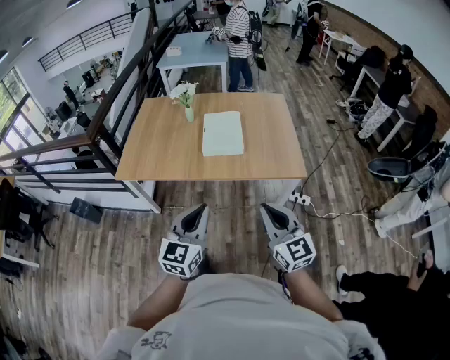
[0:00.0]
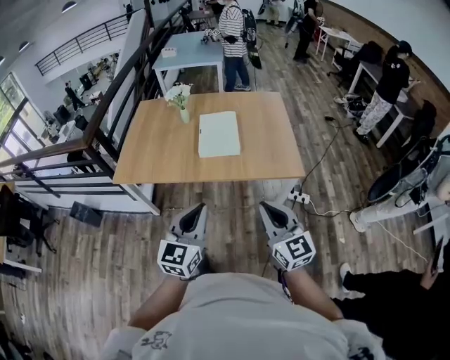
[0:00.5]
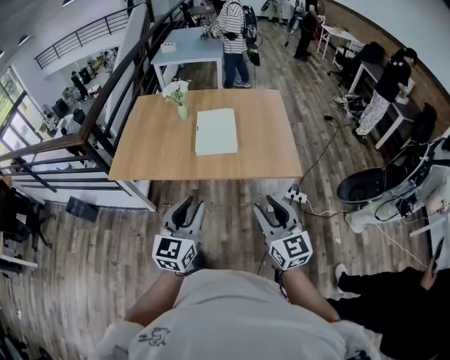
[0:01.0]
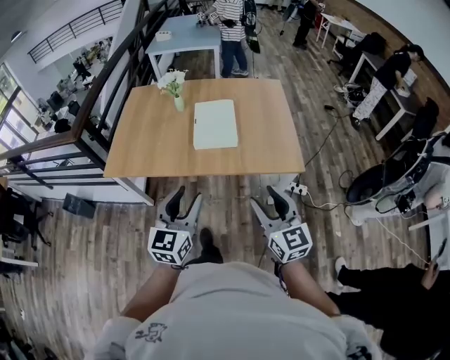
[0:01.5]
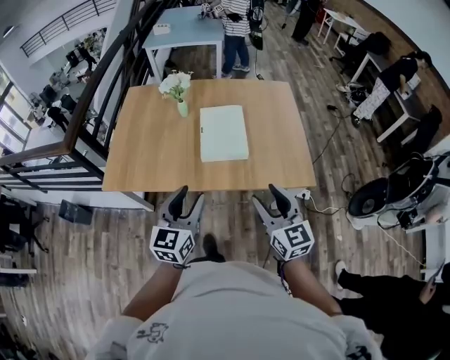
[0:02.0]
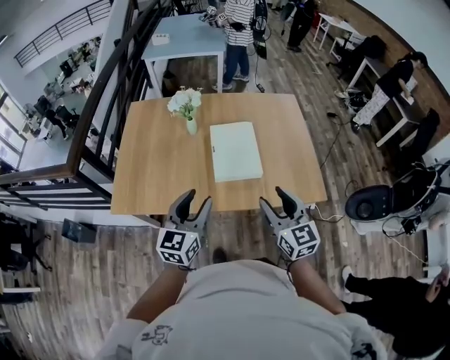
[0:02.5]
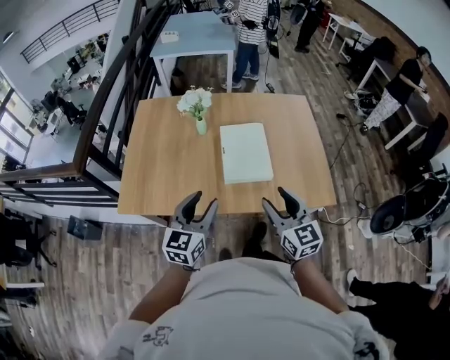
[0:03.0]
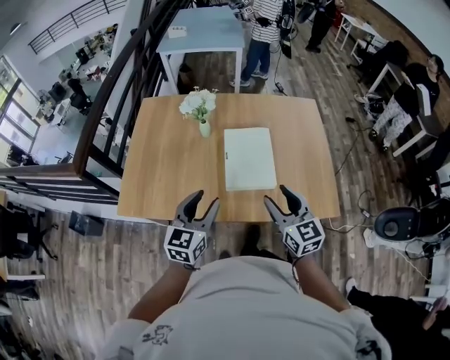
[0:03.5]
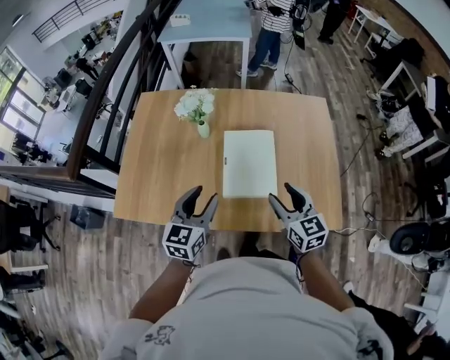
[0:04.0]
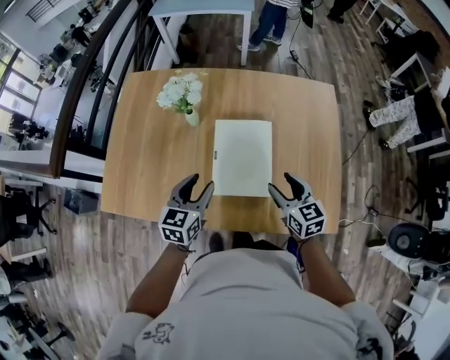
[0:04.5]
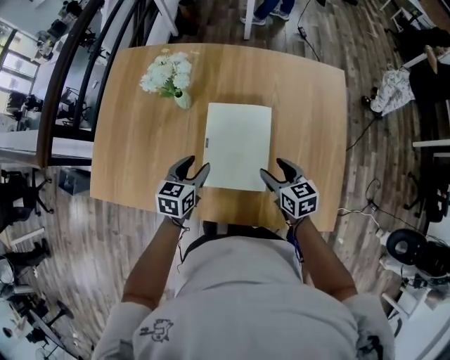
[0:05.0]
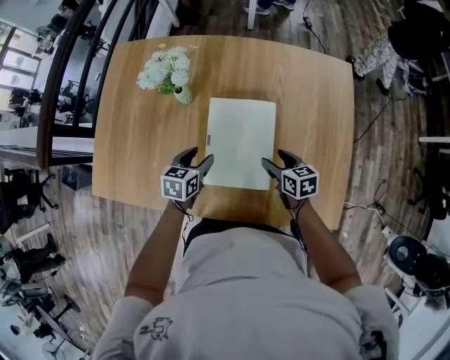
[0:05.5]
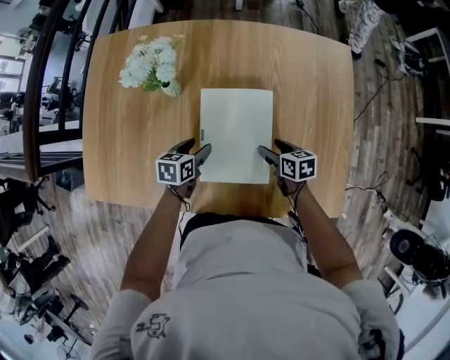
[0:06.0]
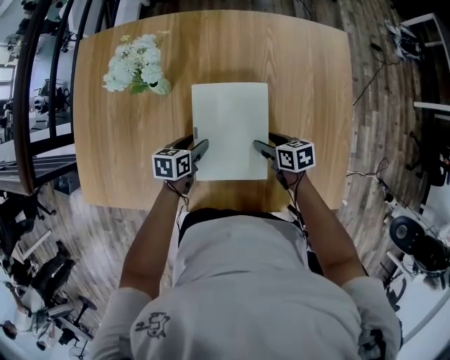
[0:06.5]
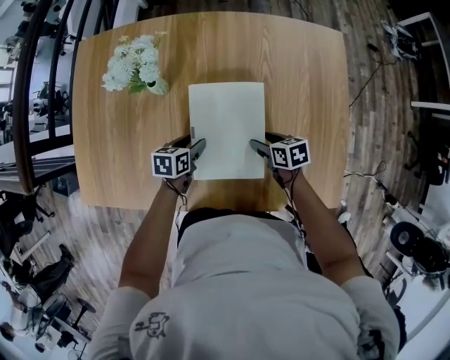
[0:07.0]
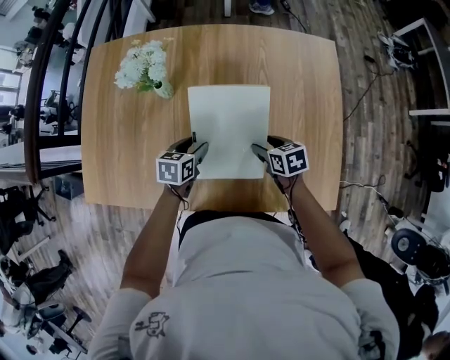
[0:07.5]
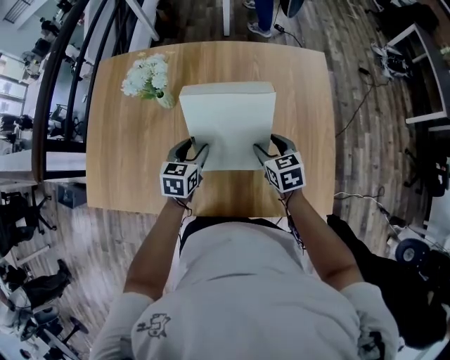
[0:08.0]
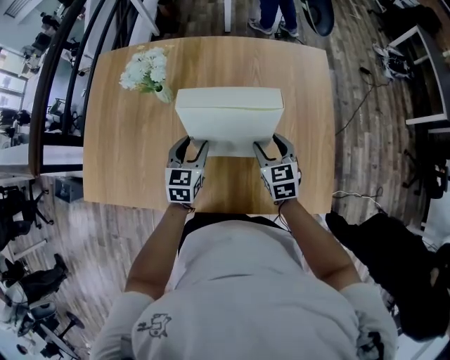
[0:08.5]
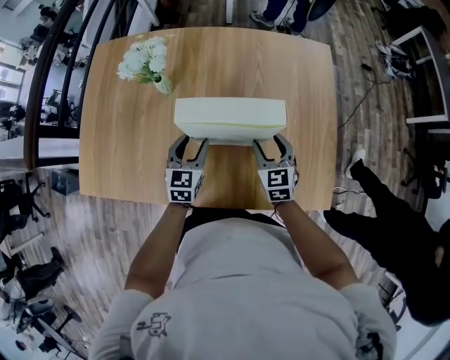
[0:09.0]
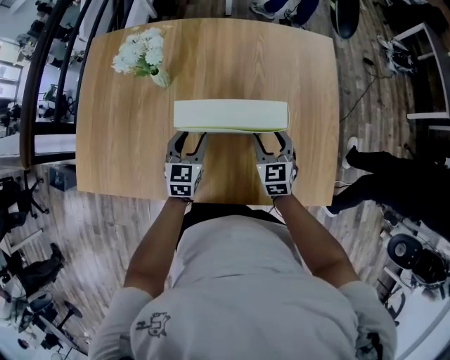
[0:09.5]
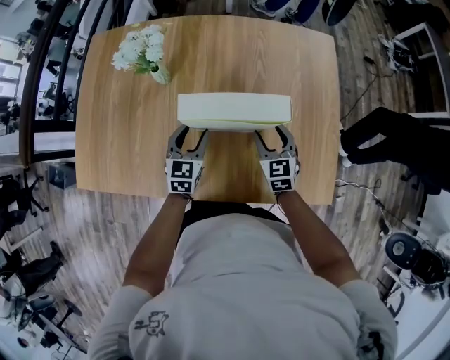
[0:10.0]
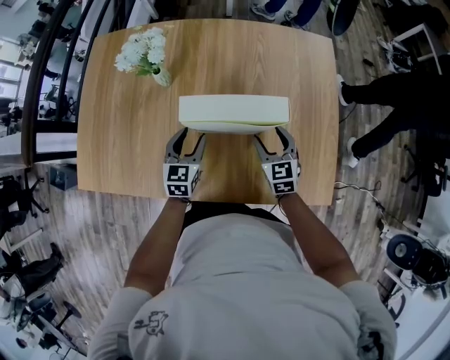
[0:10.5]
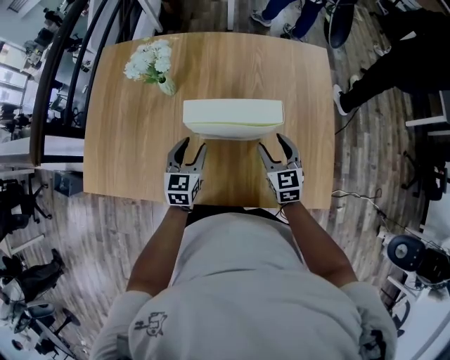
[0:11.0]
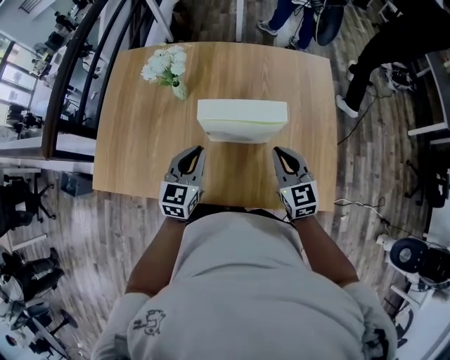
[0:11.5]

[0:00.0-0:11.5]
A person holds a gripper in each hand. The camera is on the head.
0:00.0 to 0:02.0: Both grippers move forward, approximately 20 cm. The left gripper opens; the right gripper opens.
0:02.0 to 0:04.0: The two grippers go approximately 25 cm forward.
0:04.0 to 0:06.0: The two grippers go approximately 30 cm downward and forward. The left gripper angles its fingers downward, by about 30 degrees. Meanwhile the right gripper turns by approximately 40 degrees.
0:06.0 to 0:07.5: The grippers stay close to where they were, moving slightly.
0:07.5 to 0:09.5: The grippers both shift upward by approximately 5 cm. The left gripper turns by some 30 degrees, while the right gripper swivels roughly 40 degrees.
0:09.5 to 0:11.5: The two grippers go some 15 cm upward and backward. The left gripper closes its fingers, while the right gripper closes up.

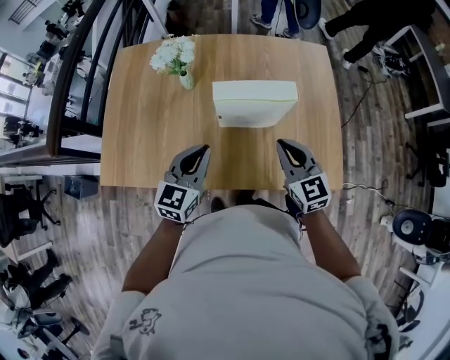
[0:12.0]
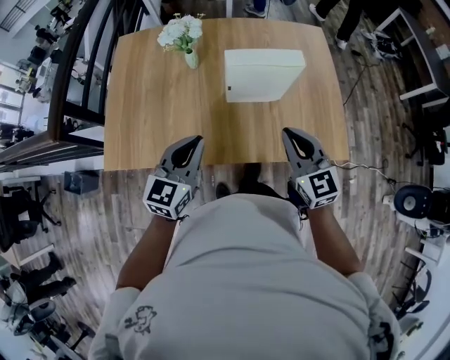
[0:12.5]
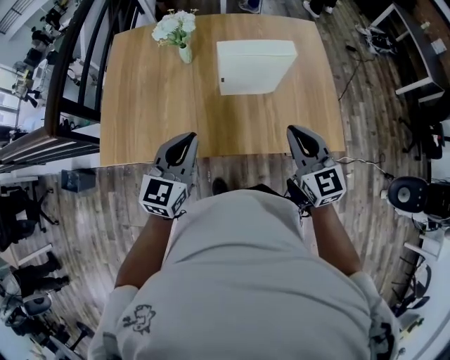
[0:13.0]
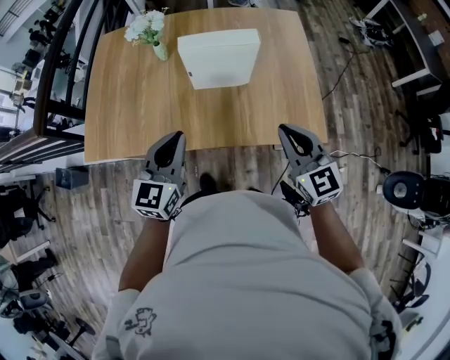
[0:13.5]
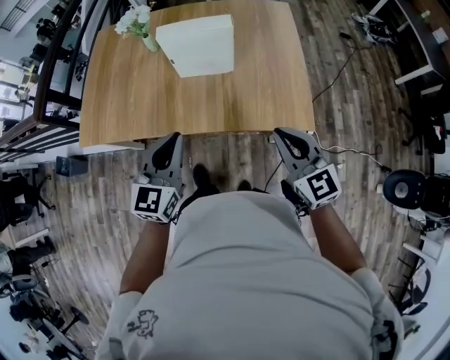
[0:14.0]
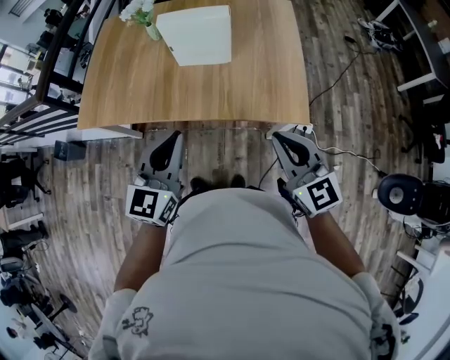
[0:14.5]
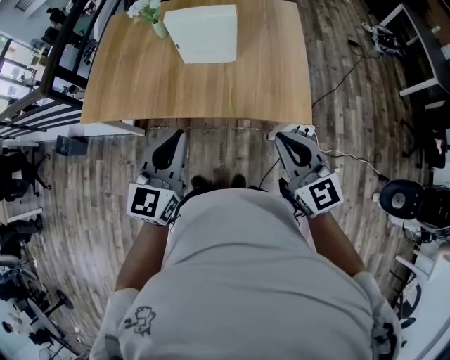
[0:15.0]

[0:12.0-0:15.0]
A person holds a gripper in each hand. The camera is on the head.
0:12.0 to 0:13.5: The right gripper travels backward and to the right by about 15 cm; the left gripper moves backward, roughly 10 cm.
0:13.5 to 0:15.0: The two grippers go about 15 cm backward and to the right.

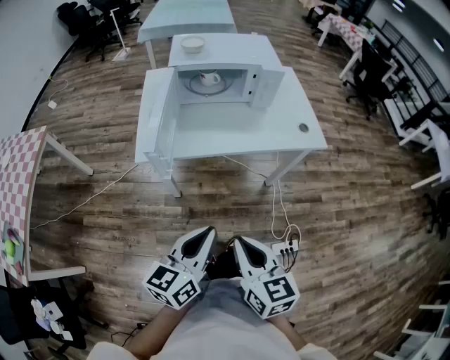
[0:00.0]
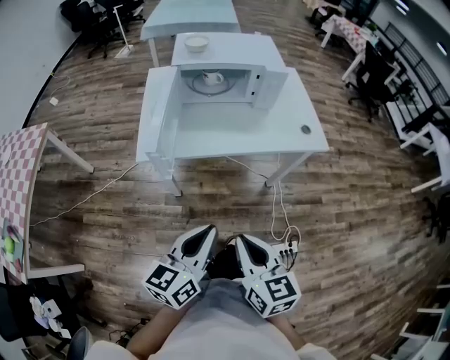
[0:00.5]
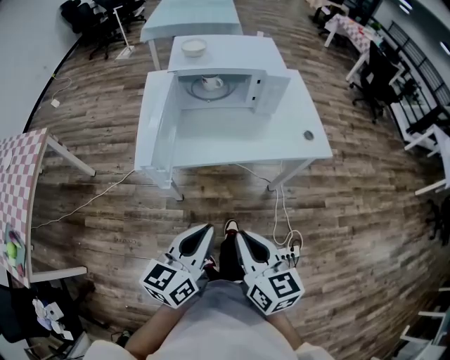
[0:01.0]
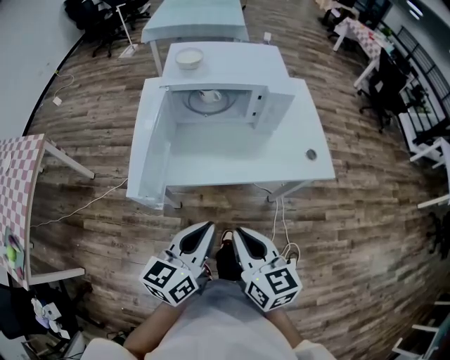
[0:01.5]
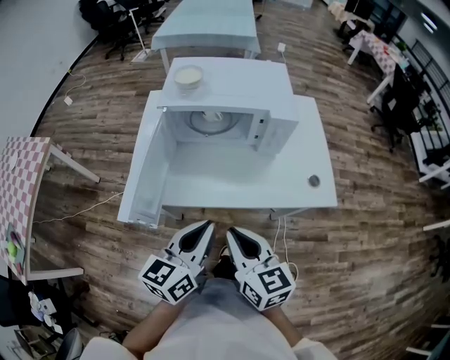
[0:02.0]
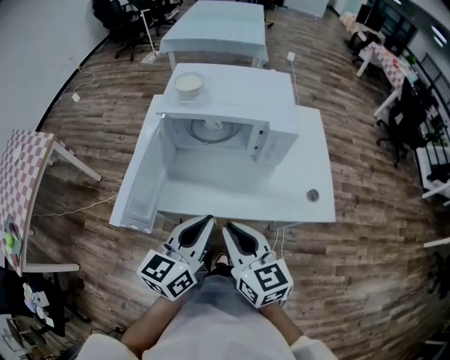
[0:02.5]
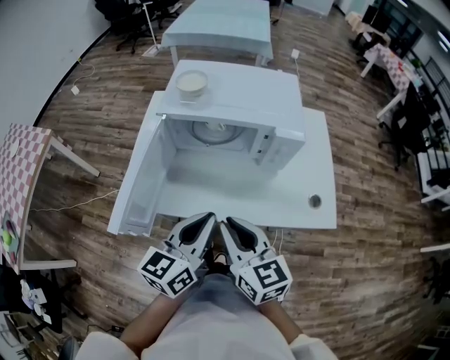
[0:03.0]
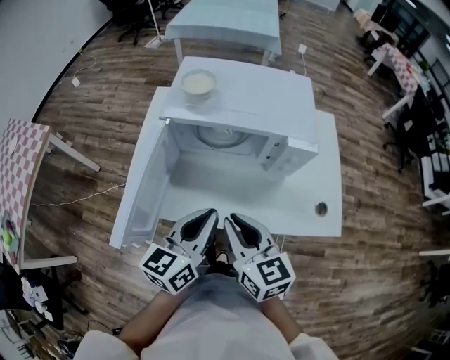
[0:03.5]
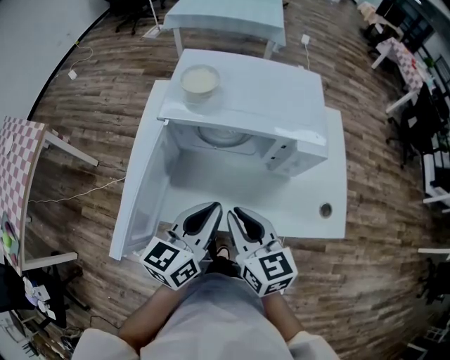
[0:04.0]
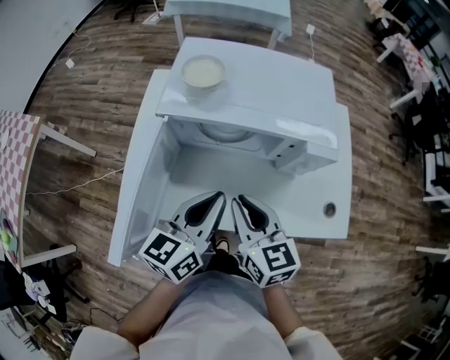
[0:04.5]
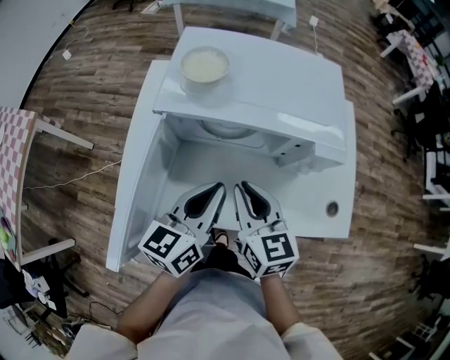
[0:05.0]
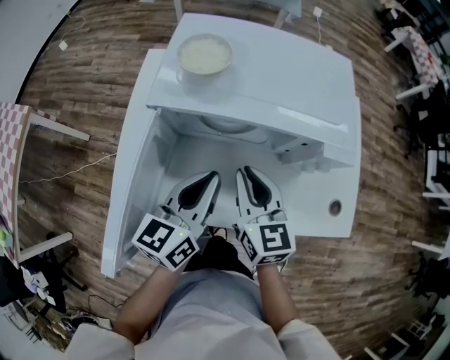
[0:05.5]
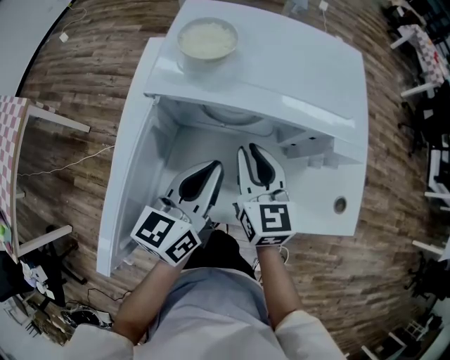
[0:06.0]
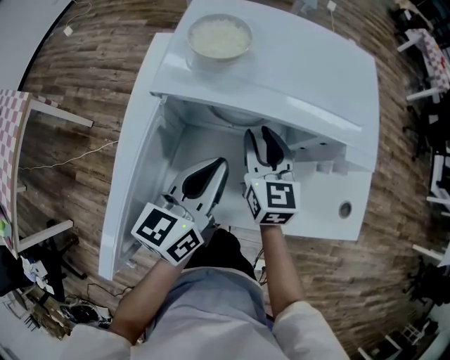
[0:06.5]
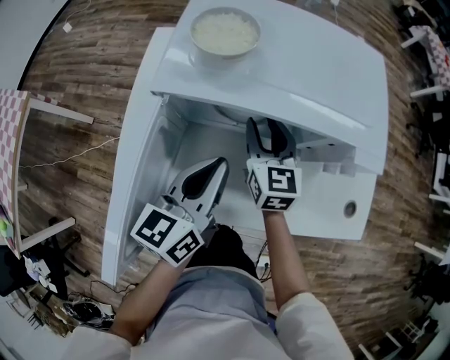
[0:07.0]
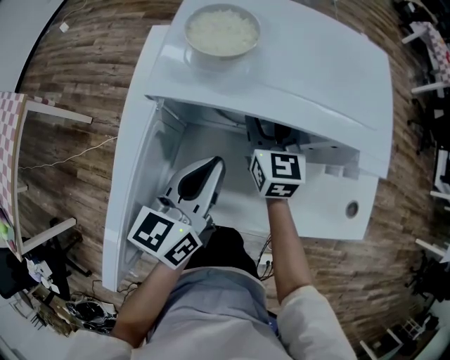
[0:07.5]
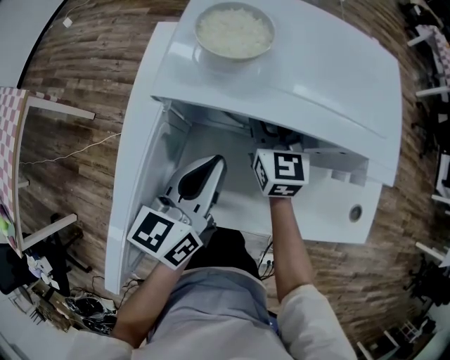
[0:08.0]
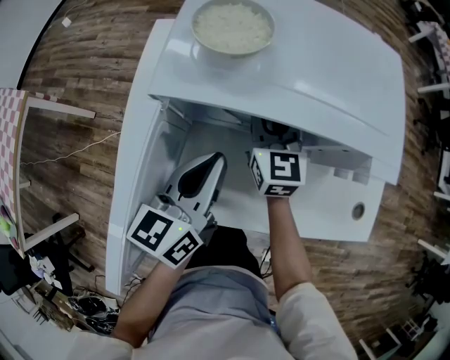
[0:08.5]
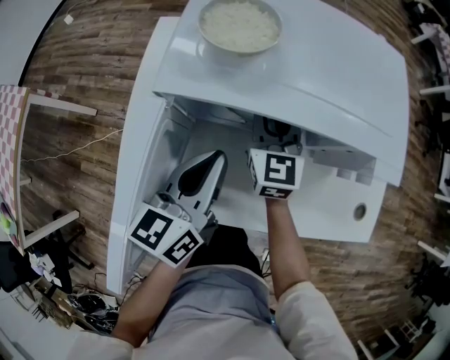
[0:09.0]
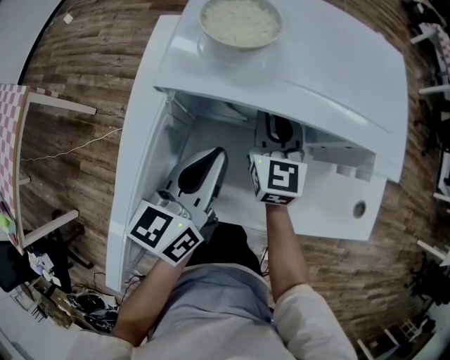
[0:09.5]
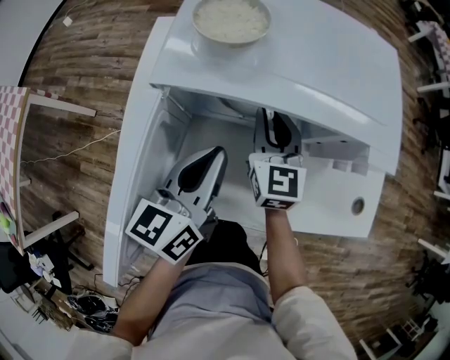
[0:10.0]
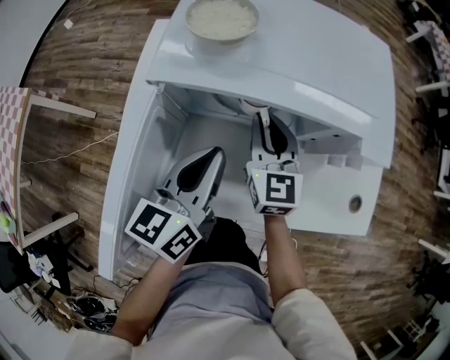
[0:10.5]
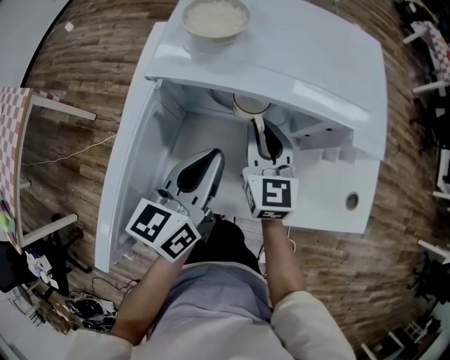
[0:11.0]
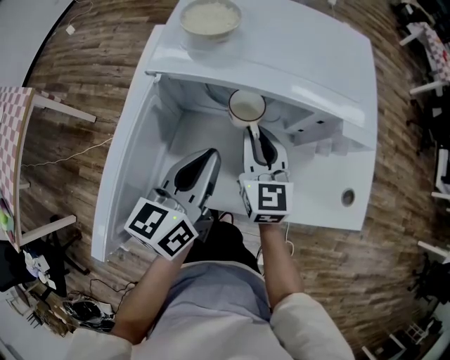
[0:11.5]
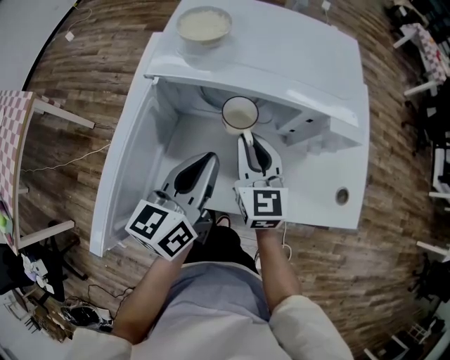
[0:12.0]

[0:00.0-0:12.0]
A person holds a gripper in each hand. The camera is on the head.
0:00.0 to 0:02.0: Both grippers travel together forward, some 25 cm.
0:02.0 to 0:04.0: The two grippers go roughly 15 cm forward.
0:04.0 to 0:06.0: The right gripper travels forward and downward by approximately 15 cm; the left gripper shifts about 10 cm forward and downward.
0:06.0 to 0:08.0: The right gripper shifts about 10 cm forward, and opens. The left gripper changes place by about 5 cm.
0:08.0 to 0:10.0: The right gripper closes its fingers.
0:10.0 to 0:12.0: The right gripper moves backward, approximately 10 cm; the left gripper ends up approximately 5 cm from where it was.
